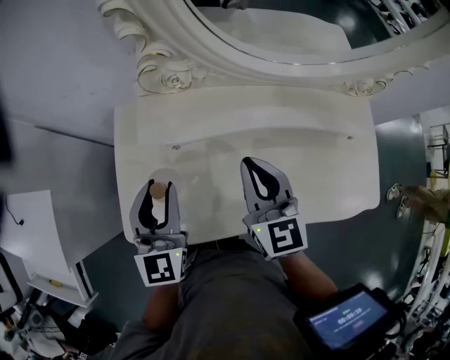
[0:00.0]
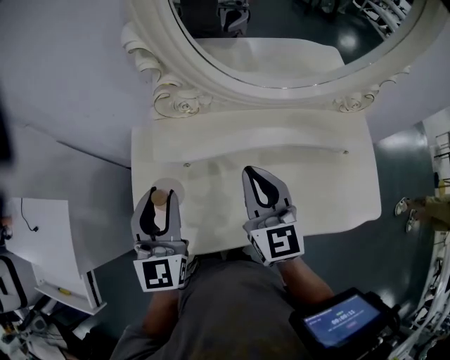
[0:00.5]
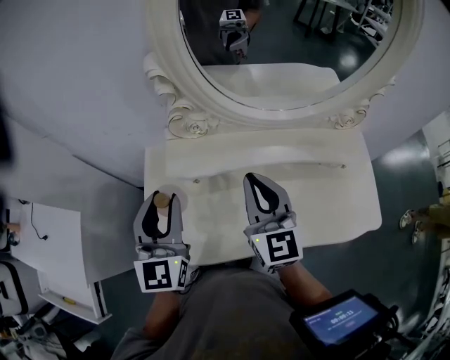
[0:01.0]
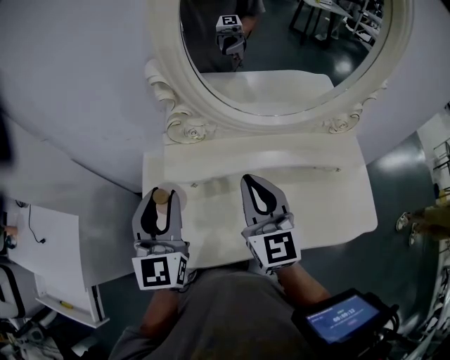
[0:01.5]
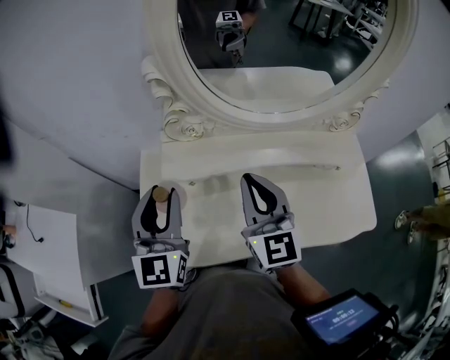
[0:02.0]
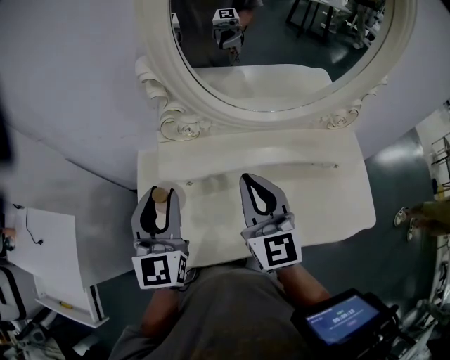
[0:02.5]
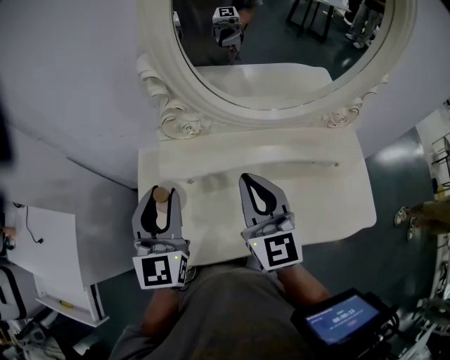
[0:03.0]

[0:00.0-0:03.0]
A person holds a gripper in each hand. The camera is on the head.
0:00.0 to 0:01.5: Both grippers travel together upward, about 10 cm.
0:01.5 to 0:03.0: The grippers move only a little.

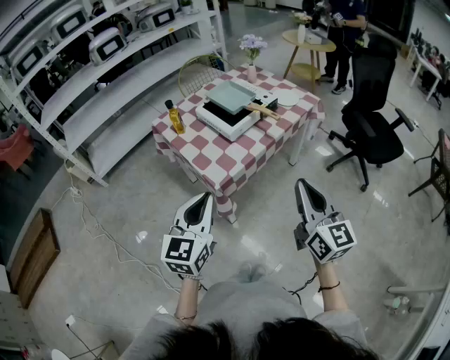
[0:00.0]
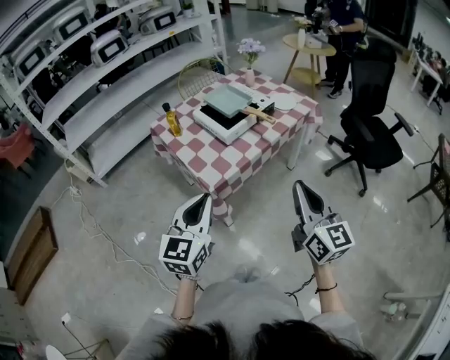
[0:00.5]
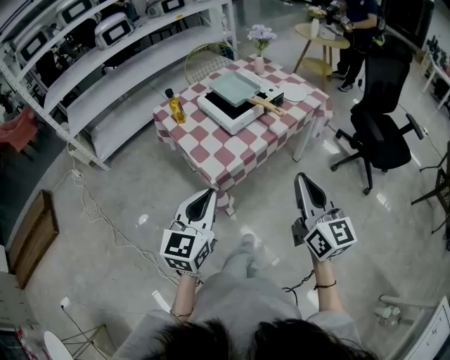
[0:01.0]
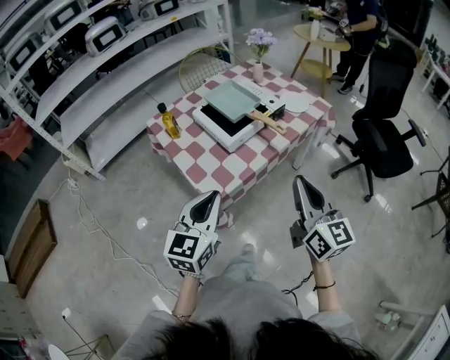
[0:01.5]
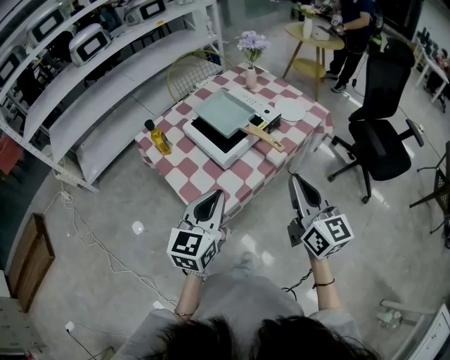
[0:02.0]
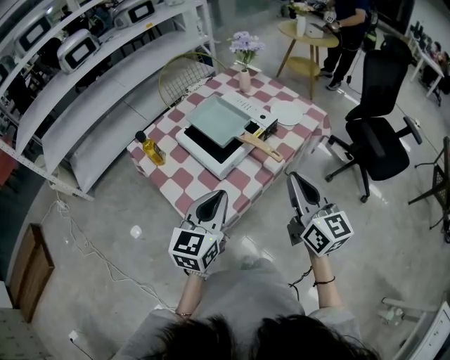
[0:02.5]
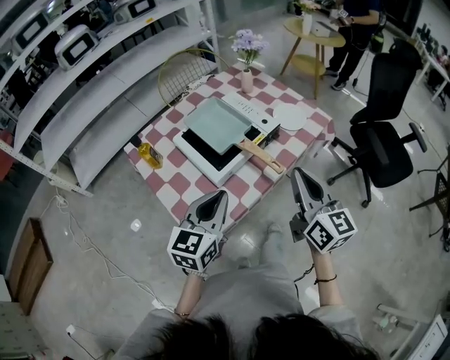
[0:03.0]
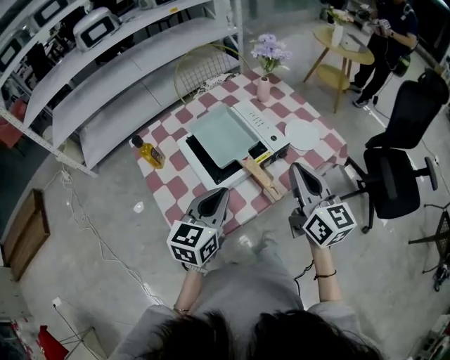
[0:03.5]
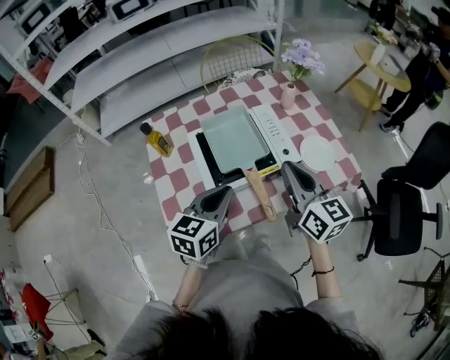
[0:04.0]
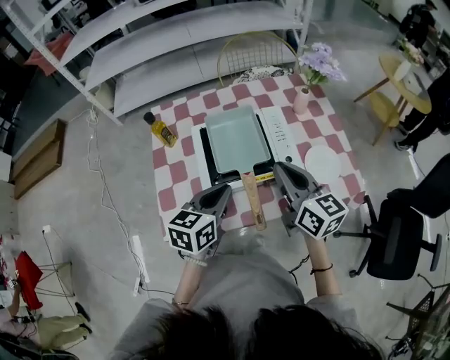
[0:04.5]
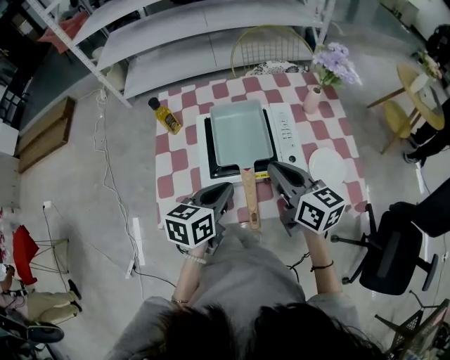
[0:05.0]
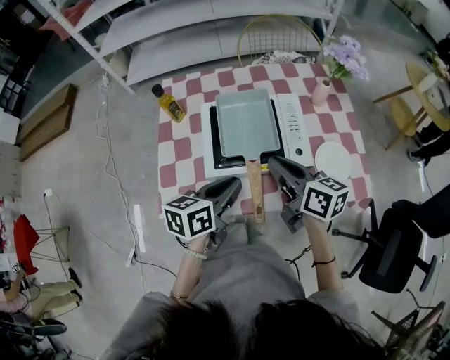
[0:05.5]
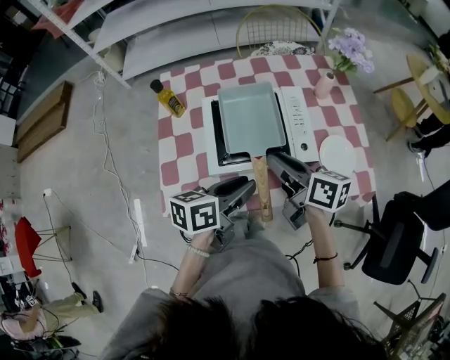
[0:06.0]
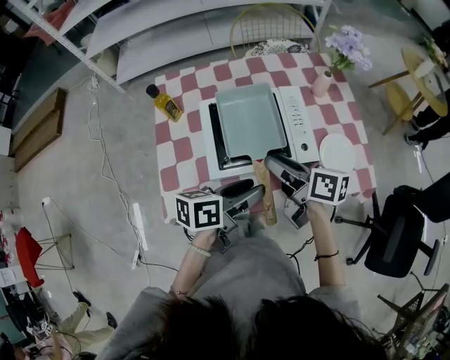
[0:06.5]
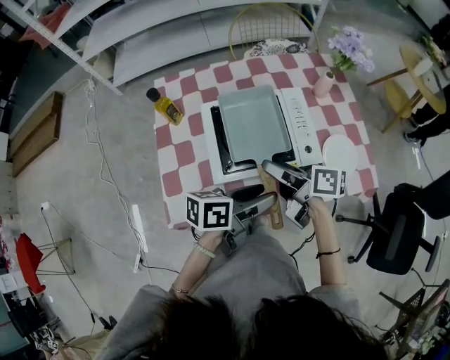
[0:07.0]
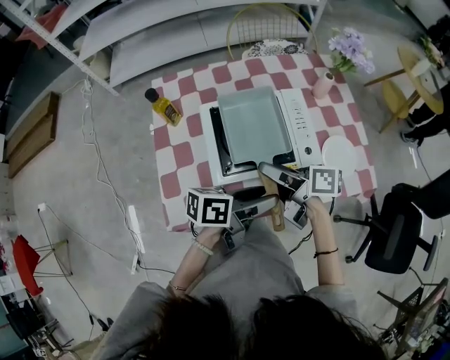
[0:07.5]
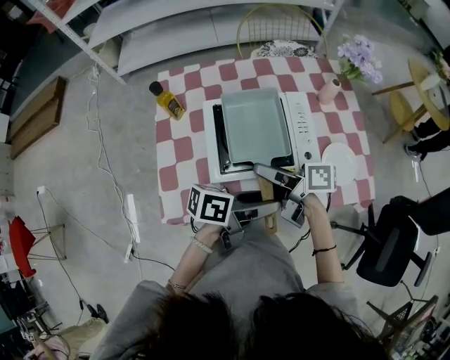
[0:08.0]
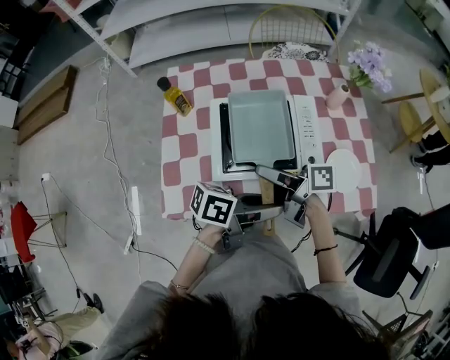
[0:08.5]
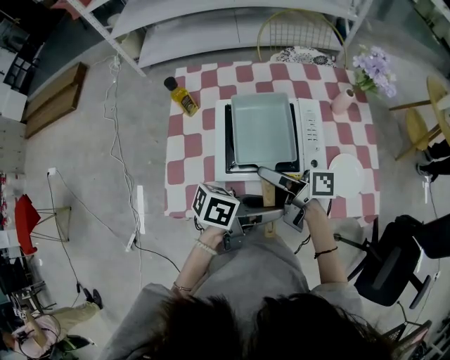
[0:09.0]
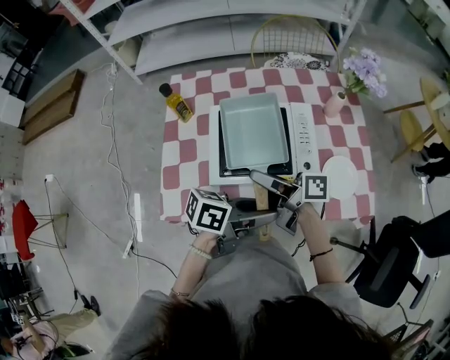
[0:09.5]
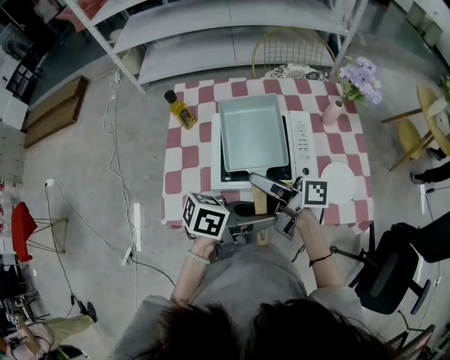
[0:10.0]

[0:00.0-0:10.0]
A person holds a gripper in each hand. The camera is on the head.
0:00.0 to 0:02.0: Both grippers travel together forward, approximately 20 cm.
0:02.0 to 0:04.0: The grippers both shift forward by roughly 25 cm. The right gripper swivels roughly 30 degrees, while the left gripper turns by approximately 20 degrees.
0:04.0 to 0:06.0: The right gripper travels downward by roughly 10 cm, rotates approximately 40 degrees, and opens. The left gripper shifts by approximately 5 cm, and turns by about 30 degrees.
0:06.0 to 0:08.0: The right gripper moves some 5 cm, turns by about 30 degrees, and opens. The left gripper ends up about 5 cm from where it was, changes its angle by some 30 degrees, and opens.
0:08.0 to 0:10.0: The grippers move only a little.

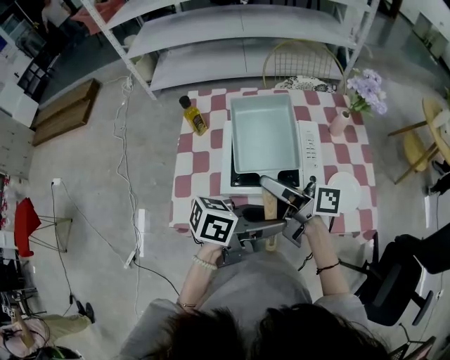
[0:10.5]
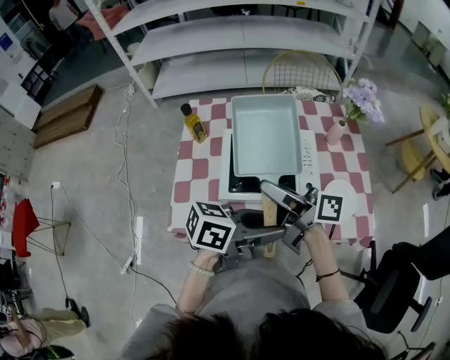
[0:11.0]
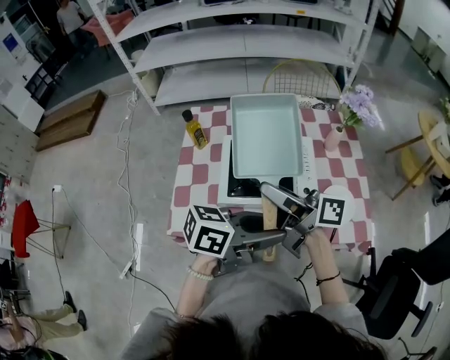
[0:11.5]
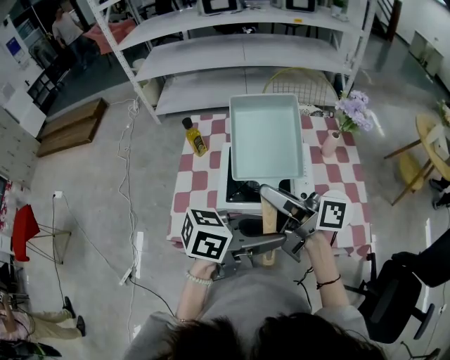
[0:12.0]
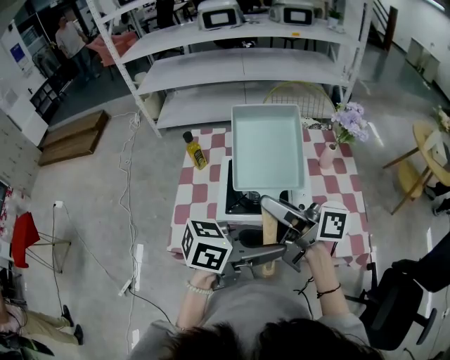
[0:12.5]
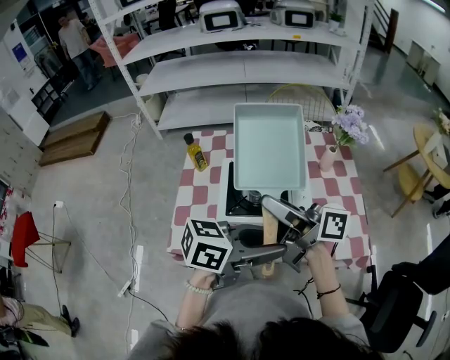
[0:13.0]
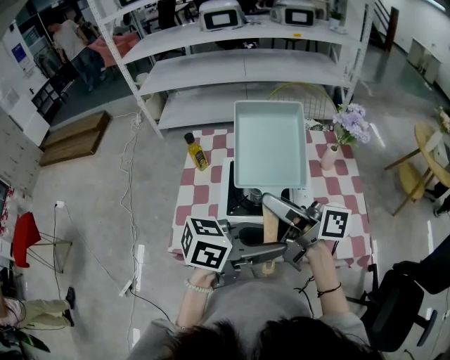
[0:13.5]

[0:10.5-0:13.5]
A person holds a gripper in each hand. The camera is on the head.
0:10.5 to 0:12.0: Both grippers travel together upward, roughly 5 cm.
0:12.0 to 0:13.5: The grippers move only a little.

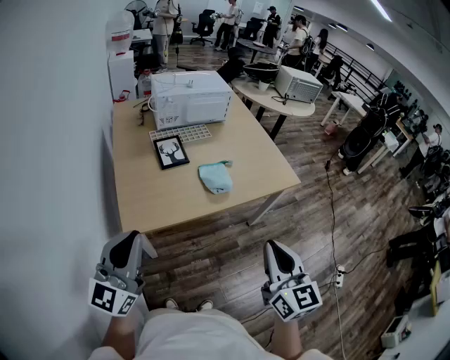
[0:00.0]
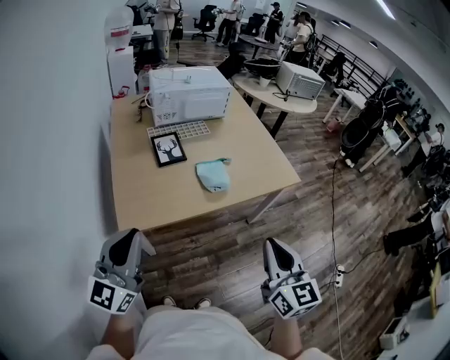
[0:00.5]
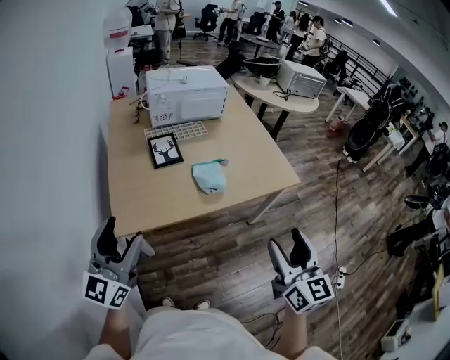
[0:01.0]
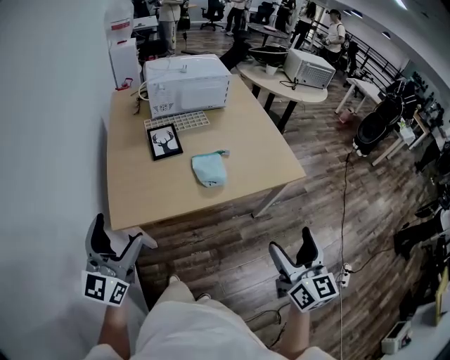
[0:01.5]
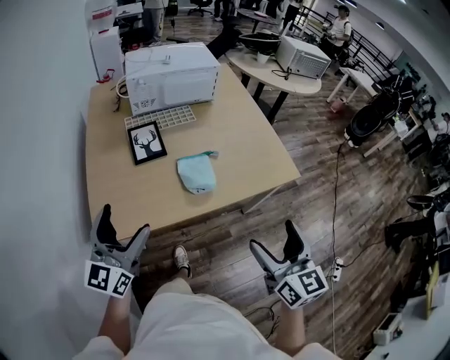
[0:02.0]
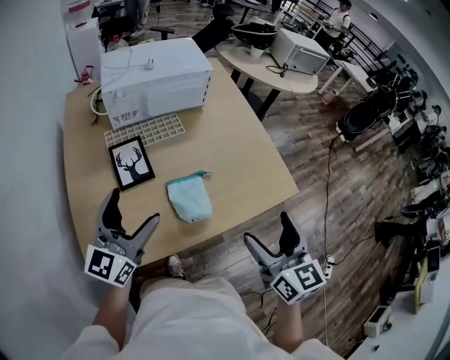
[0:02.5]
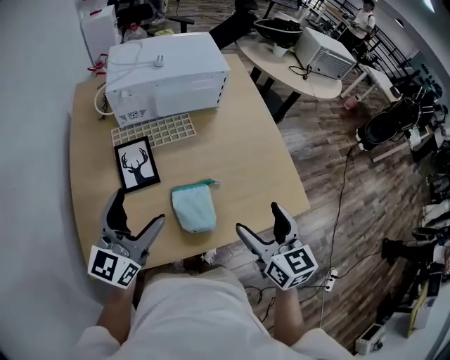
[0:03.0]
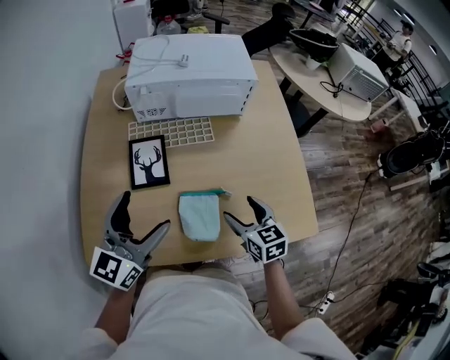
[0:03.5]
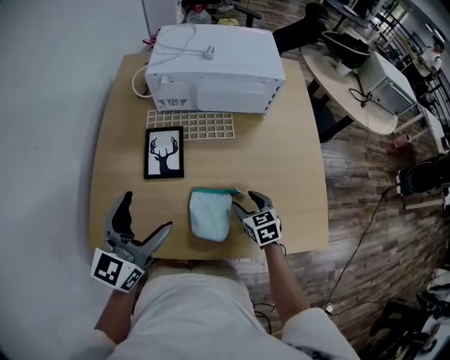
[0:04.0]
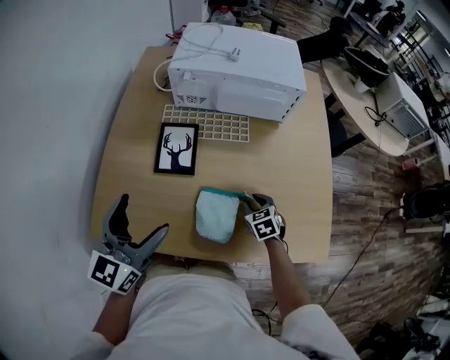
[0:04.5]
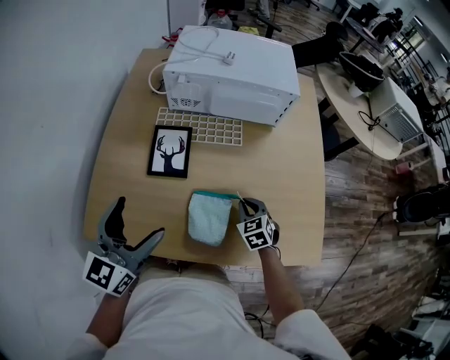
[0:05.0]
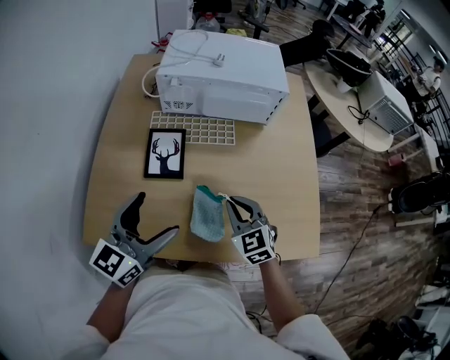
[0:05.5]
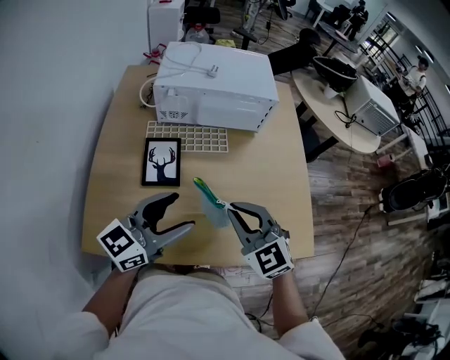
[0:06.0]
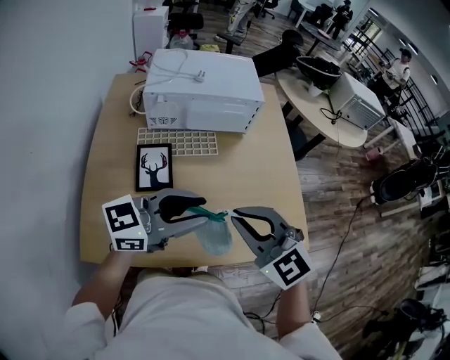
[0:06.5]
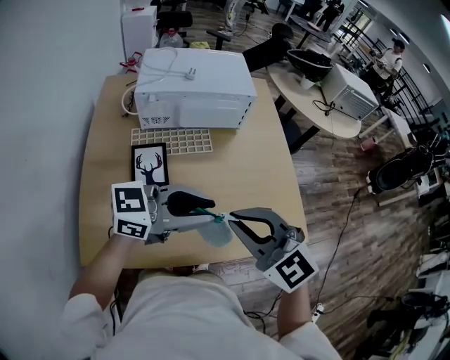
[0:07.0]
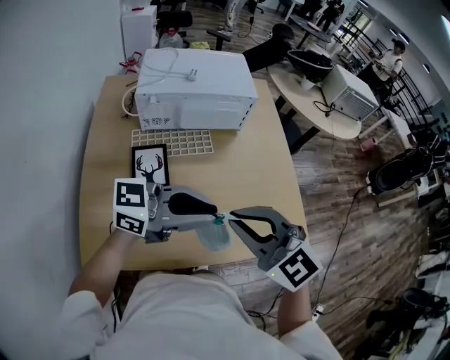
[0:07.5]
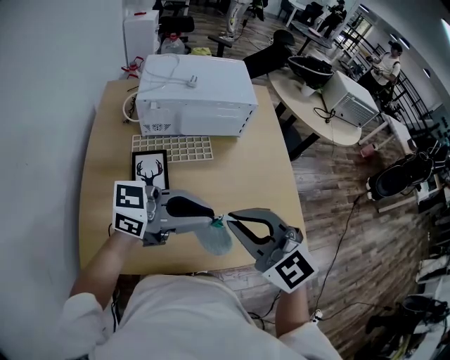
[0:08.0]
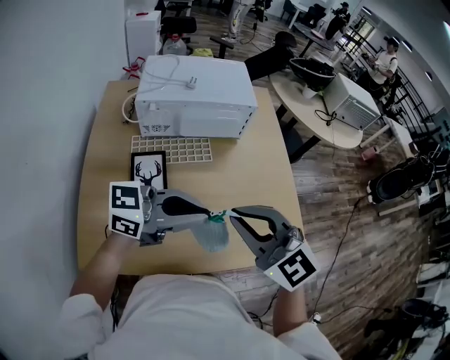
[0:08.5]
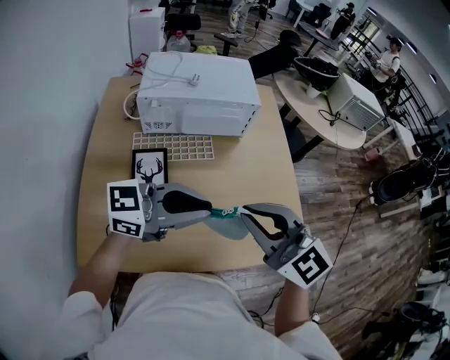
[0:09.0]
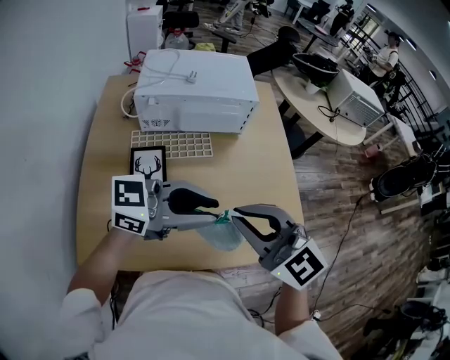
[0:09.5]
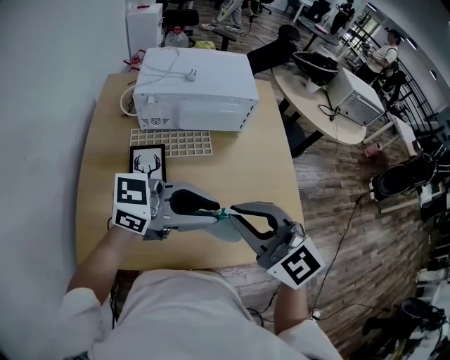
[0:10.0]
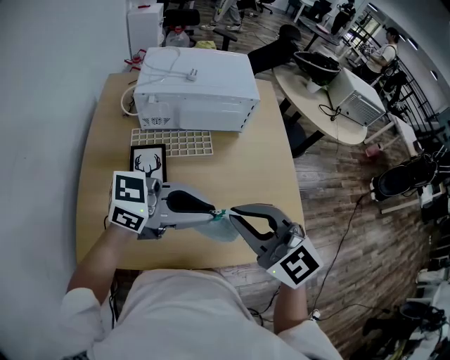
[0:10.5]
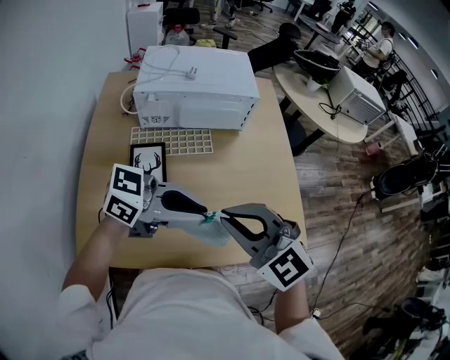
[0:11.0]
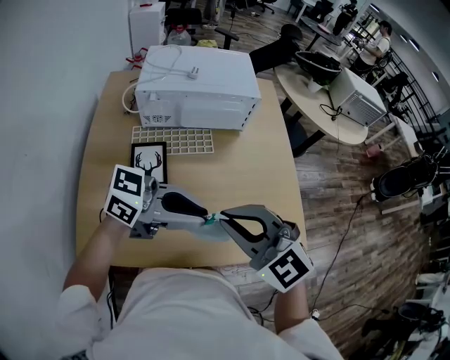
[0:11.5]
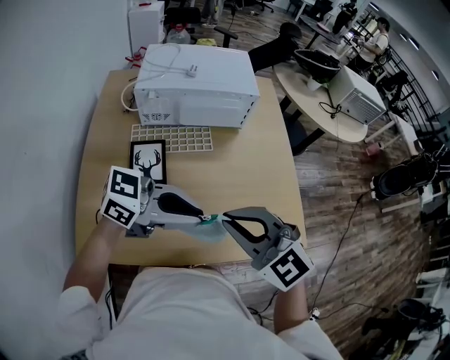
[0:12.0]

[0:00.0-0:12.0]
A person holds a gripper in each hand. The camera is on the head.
0:00.0 to 0:02.0: The left gripper shifts approximately 20 cm forward, downward and to the right, and opens, while the right gripper goes some 20 cm forward and to the right, and opens up.
0:02.0 to 0:04.0: The right gripper travels forward and downward by roughly 50 cm, angles its fingers downward, by some 30 degrees, and closes up. Meanwhile the left gripper goes roughly 25 cm forward.
0:04.0 to 0:06.0: The right gripper heads upward, covering roughly 20 cm, swivels some 40 degrees, and closes its fingers. The left gripper is displaced to the right by roughly 5 cm, and turns by approximately 30 degrees.
0:06.0 to 0:08.0: The right gripper is displaced upward by roughly 10 cm, while the left gripper changes place by roughly 10 cm, rotates roughly 40 degrees, and closes up.
0:08.0 to 0:12.0: The grippers stay close to where they were, moving slightly.
